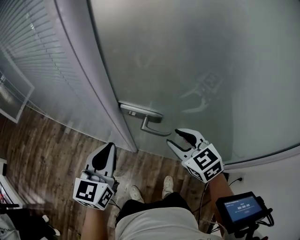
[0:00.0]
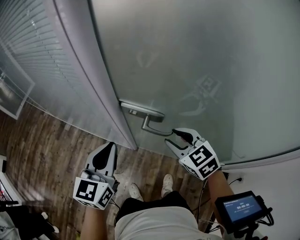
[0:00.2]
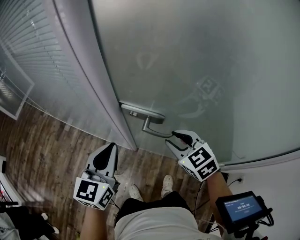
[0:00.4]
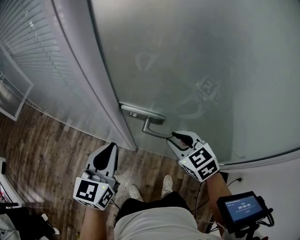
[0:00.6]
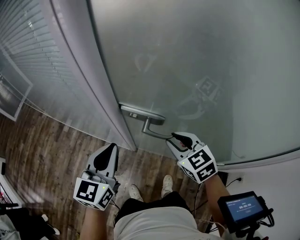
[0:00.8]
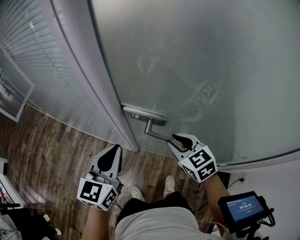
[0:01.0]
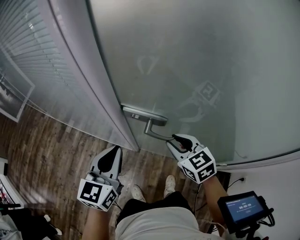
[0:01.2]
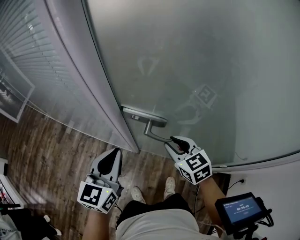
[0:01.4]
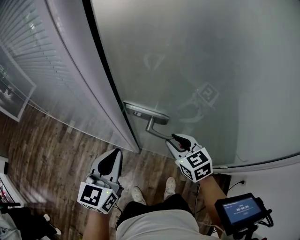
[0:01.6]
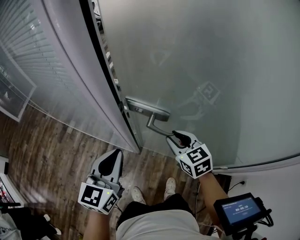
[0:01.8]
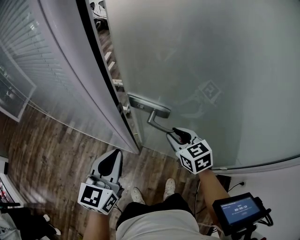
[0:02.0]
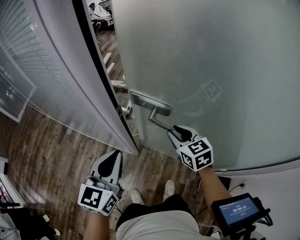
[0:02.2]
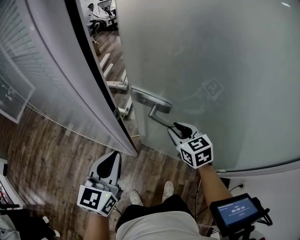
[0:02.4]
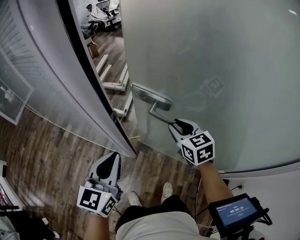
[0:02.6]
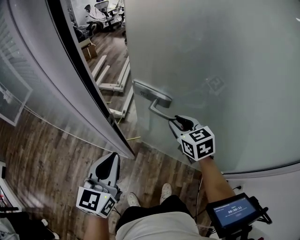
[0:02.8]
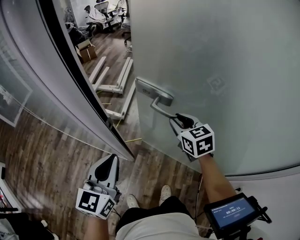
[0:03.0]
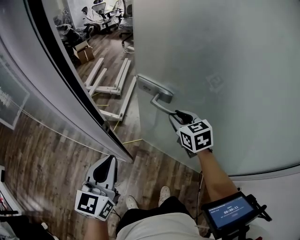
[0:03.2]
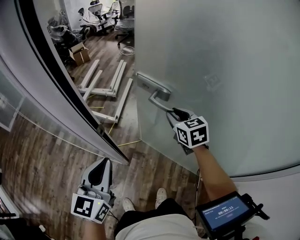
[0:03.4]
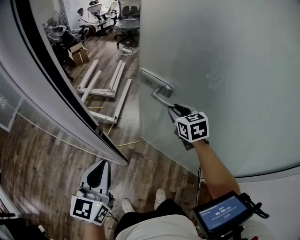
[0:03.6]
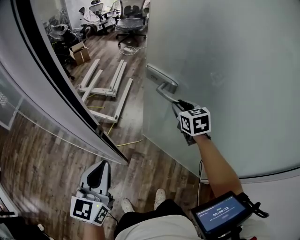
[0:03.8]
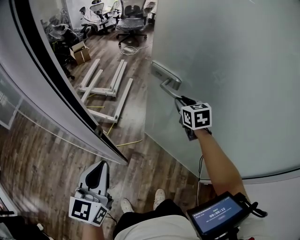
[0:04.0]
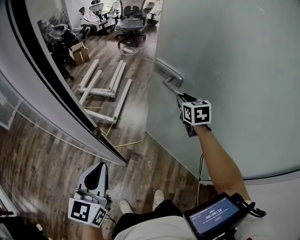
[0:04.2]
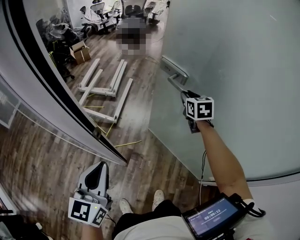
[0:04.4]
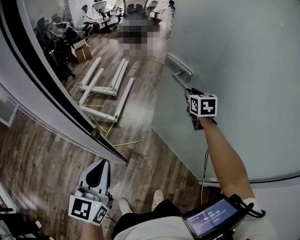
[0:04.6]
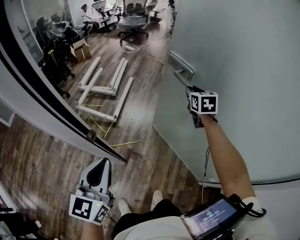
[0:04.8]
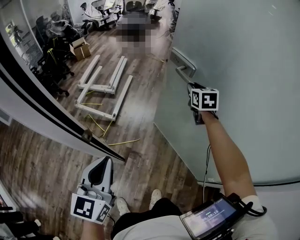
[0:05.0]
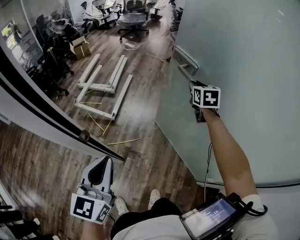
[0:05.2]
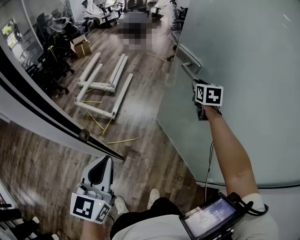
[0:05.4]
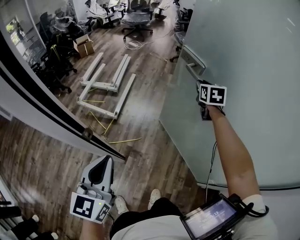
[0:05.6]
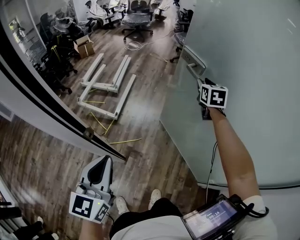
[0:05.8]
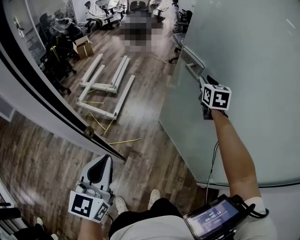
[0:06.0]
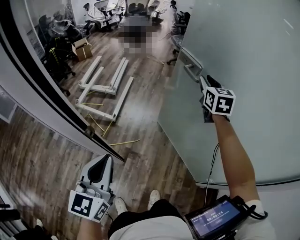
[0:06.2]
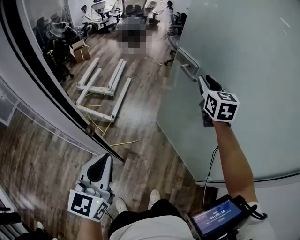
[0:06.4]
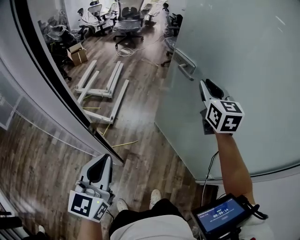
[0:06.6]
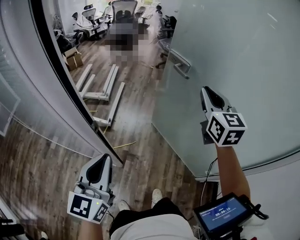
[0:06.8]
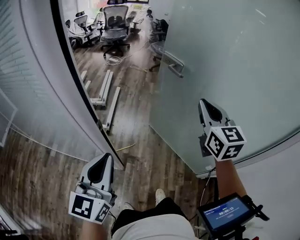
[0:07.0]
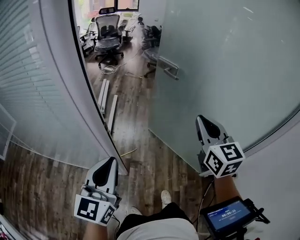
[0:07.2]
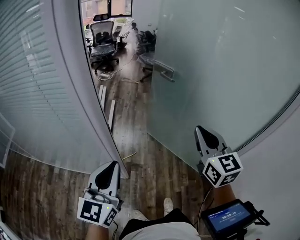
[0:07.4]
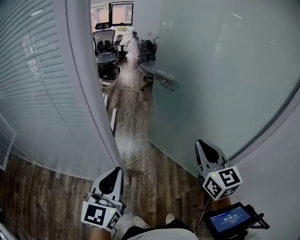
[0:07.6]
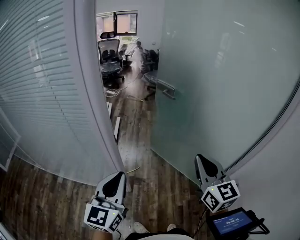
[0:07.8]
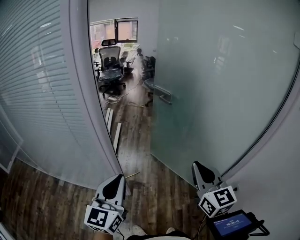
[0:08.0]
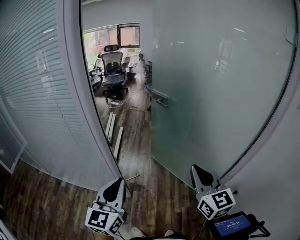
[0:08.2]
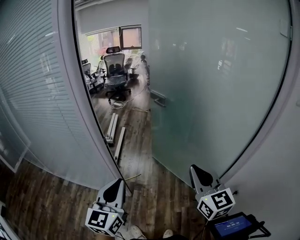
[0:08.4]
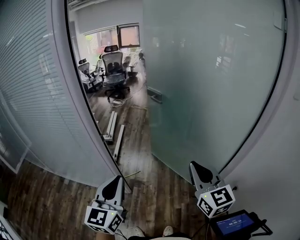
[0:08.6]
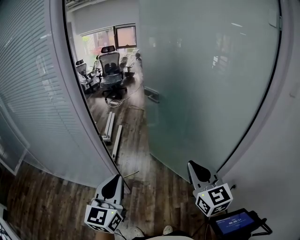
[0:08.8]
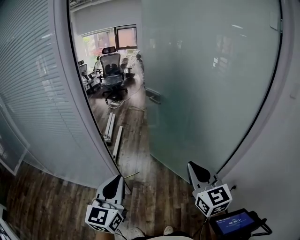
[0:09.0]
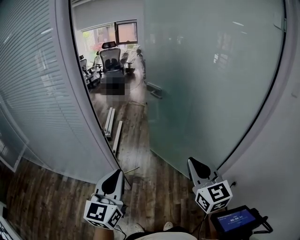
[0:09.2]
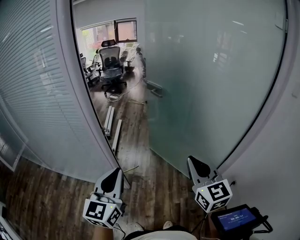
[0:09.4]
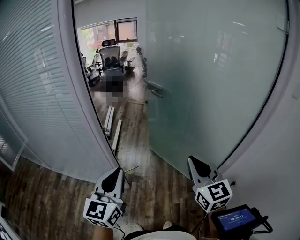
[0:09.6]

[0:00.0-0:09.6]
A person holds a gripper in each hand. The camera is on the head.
0:00.0 to 0:01.6: The right gripper shifts by some 5 cm.
0:01.6 to 0:03.2: The right gripper shifts approximately 15 cm forward and to the right.
0:03.2 to 0:04.8: The right gripper goes some 25 cm forward and to the right.
0:04.8 to 0:06.4: The right gripper goes about 15 cm upward and backward.
0:06.4 to 0:08.0: The left gripper goes approximately 15 cm backward, while the right gripper moves backward, approximately 50 cm, and closes its fingers.
0:08.0 to 0:09.6: The two grippers go some 10 cm to the right and backward.

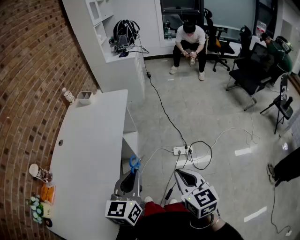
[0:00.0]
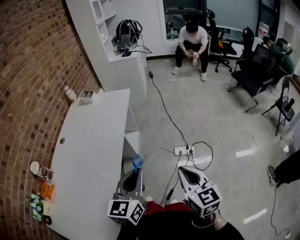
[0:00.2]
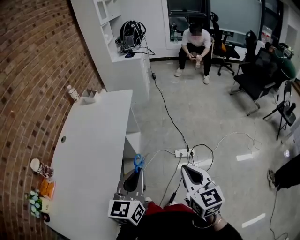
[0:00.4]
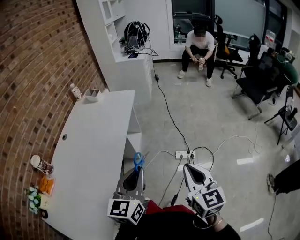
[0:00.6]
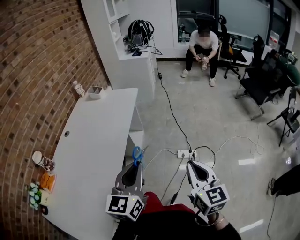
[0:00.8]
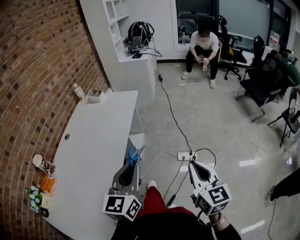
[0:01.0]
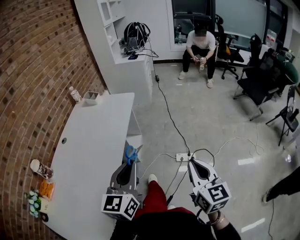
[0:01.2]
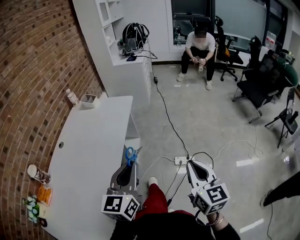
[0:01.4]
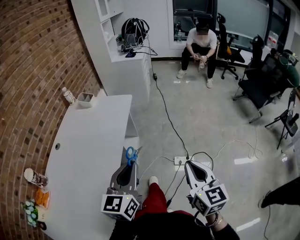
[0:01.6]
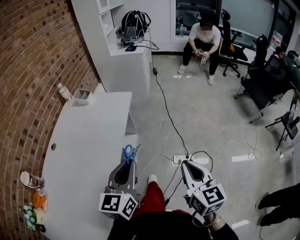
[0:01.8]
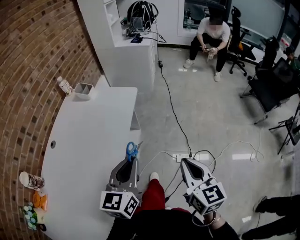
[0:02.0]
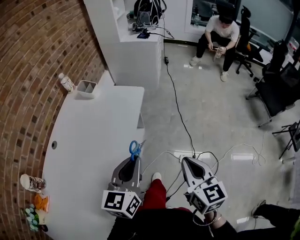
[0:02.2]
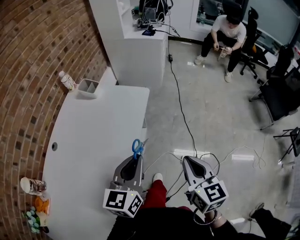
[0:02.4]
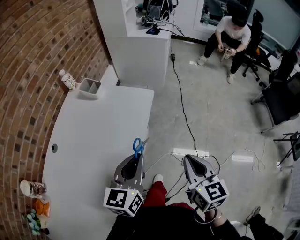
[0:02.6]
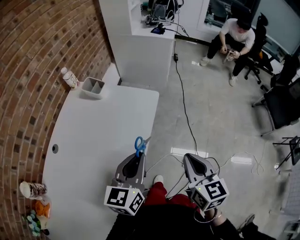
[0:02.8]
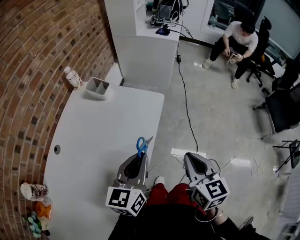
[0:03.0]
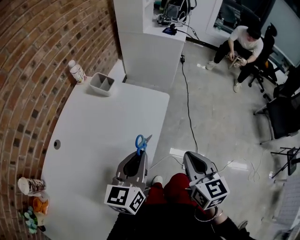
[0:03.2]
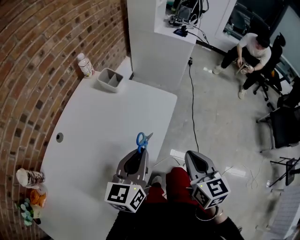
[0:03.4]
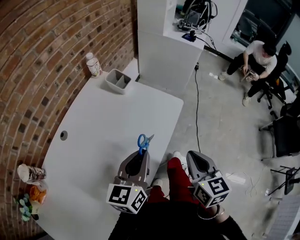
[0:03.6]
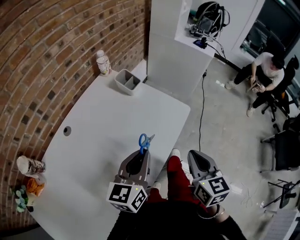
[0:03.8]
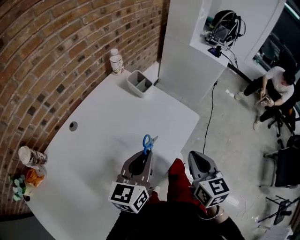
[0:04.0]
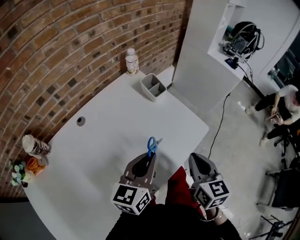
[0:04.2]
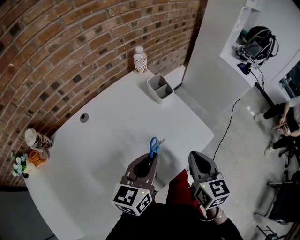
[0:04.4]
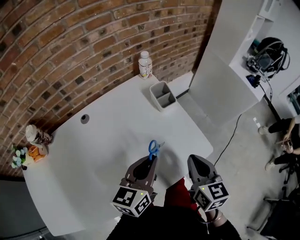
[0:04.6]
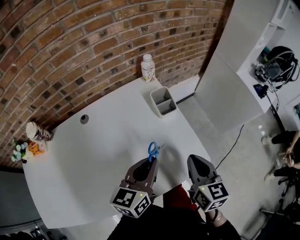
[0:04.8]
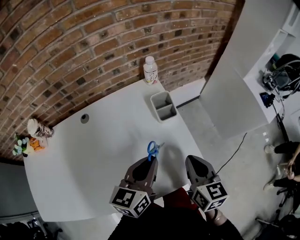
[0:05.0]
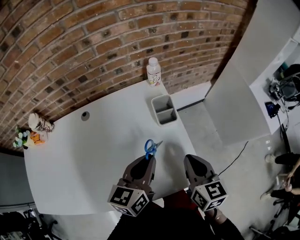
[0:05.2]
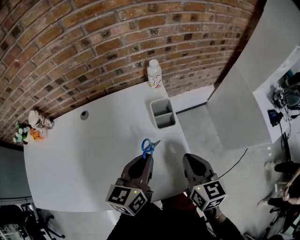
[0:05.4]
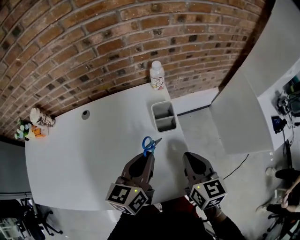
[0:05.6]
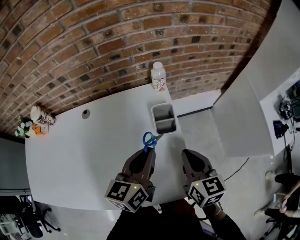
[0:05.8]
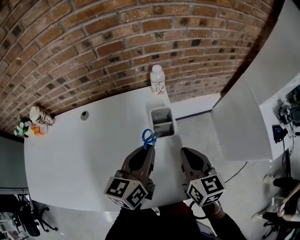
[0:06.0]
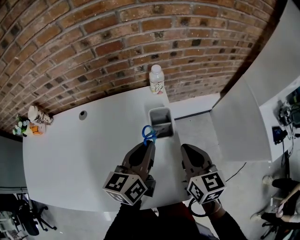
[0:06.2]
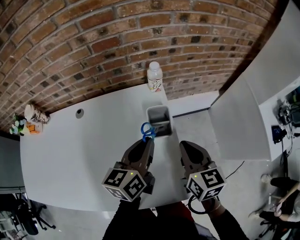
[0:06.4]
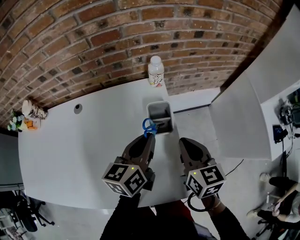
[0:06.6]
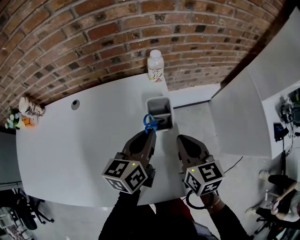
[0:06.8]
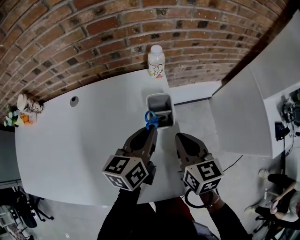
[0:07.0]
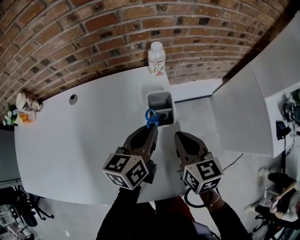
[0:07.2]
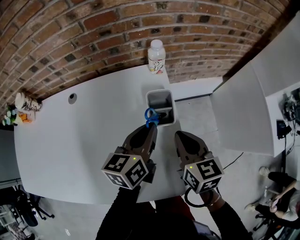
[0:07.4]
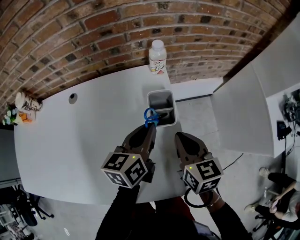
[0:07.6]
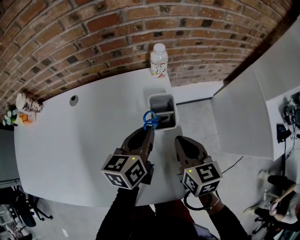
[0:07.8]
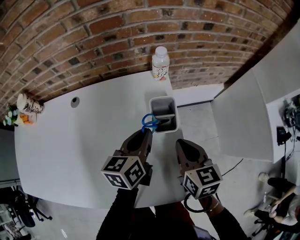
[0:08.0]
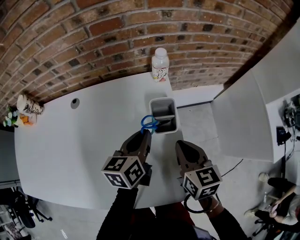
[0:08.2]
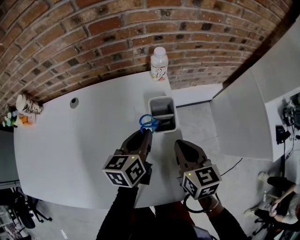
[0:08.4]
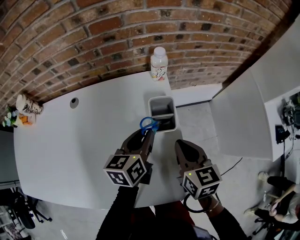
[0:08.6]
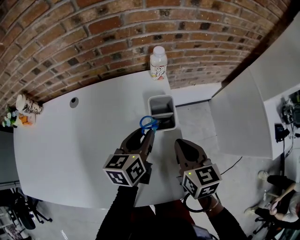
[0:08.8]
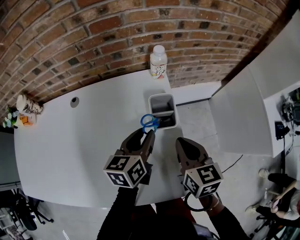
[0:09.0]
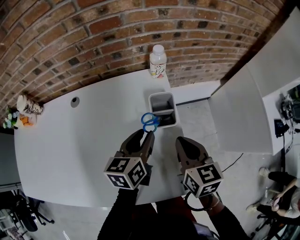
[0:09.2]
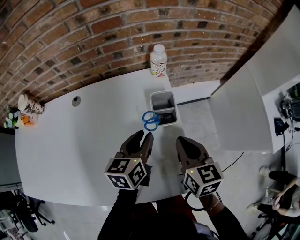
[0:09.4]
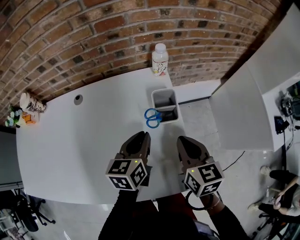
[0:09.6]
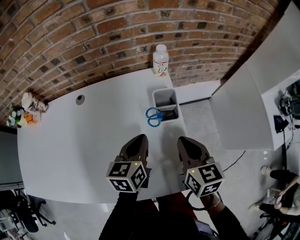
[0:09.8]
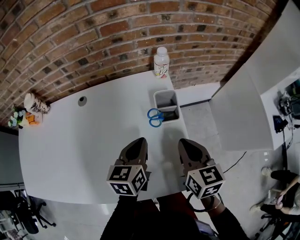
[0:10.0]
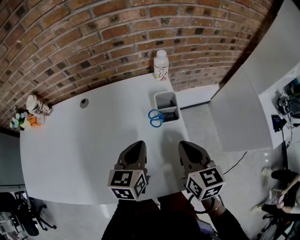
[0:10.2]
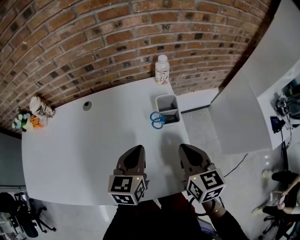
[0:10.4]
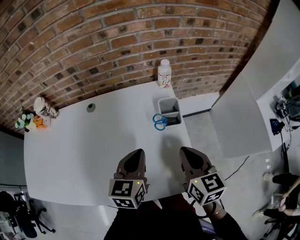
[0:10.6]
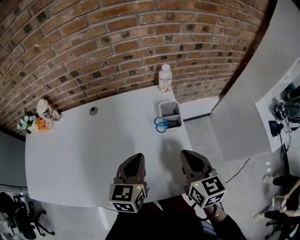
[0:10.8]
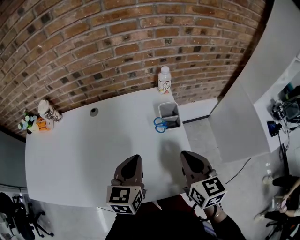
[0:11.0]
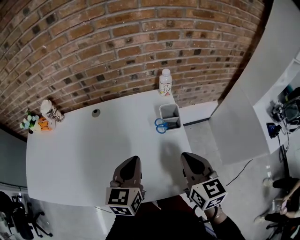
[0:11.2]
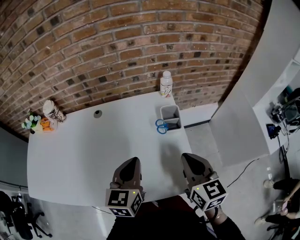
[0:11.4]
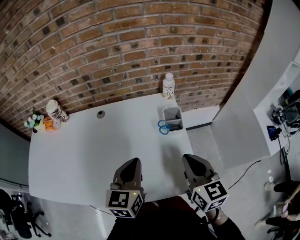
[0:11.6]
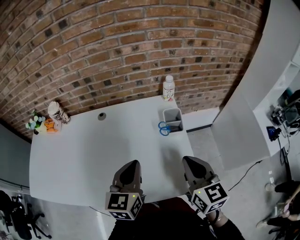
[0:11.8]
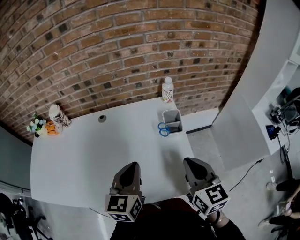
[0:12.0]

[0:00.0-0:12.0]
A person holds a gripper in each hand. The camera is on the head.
0:00.0 to 0:01.6: The two grippers go about 10 cm forward.
0:01.6 to 0:03.0: The left gripper shifts approximately 25 cm forward; the right gripper shifts approximately 30 cm forward and to the left.
0:03.0 to 0:04.4: The right gripper changes place by some 20 cm, and rotates approximately 30 degrees. Meanwhile the left gripper moves roughly 10 cm, and changes its angle by approximately 30 degrees.
0:04.4 to 0:06.0: The right gripper ends up roughly 25 cm from where it was, and changes its angle by roughly 30 degrees. Meanwhile the left gripper shifts by some 20 cm, and rotates about 30 degrees.
0:06.0 to 0:07.6: The two grippers go some 5 cm downward.
0:07.6 to 0:09.0: The left gripper opens up.
0:09.0 to 0:10.4: The left gripper moves backward and to the left, approximately 10 cm, and closes, while the right gripper heads backward, covering roughly 5 cm.
0:10.4 to 0:12.0: The left gripper is displaced upward, backward and to the left by some 10 cm, while the right gripper is displaced upward and backward by roughly 10 cm.

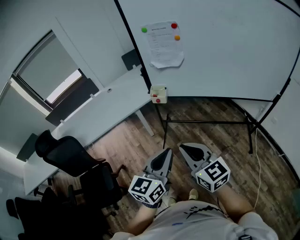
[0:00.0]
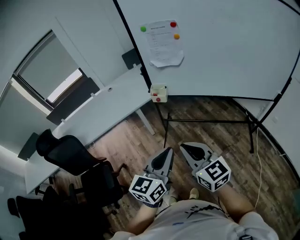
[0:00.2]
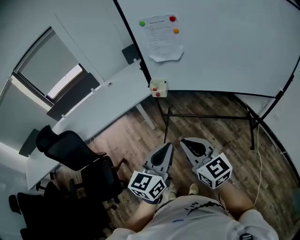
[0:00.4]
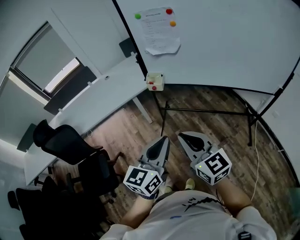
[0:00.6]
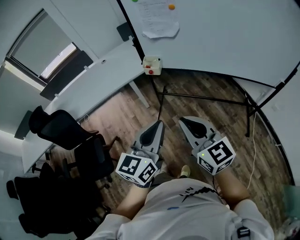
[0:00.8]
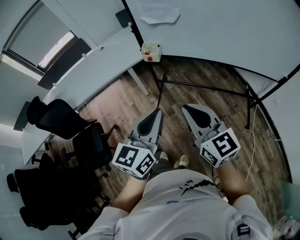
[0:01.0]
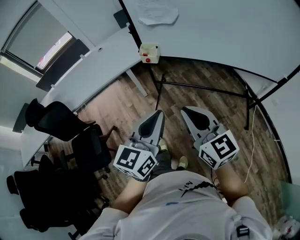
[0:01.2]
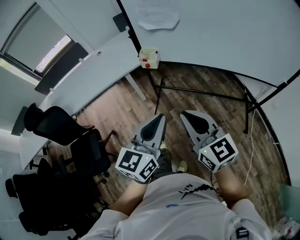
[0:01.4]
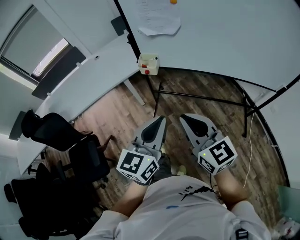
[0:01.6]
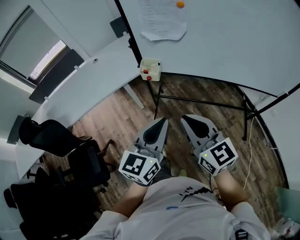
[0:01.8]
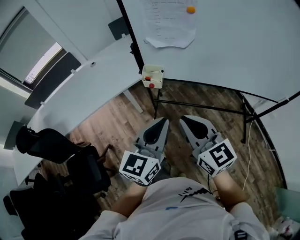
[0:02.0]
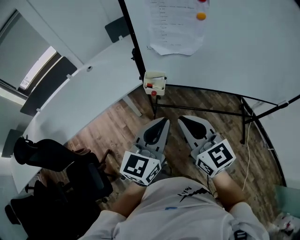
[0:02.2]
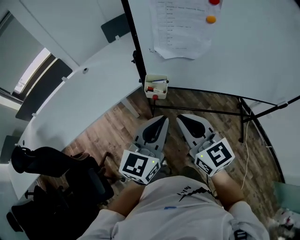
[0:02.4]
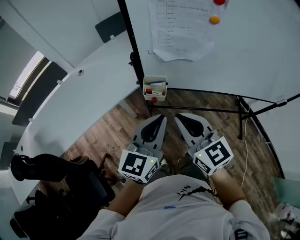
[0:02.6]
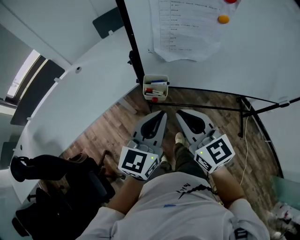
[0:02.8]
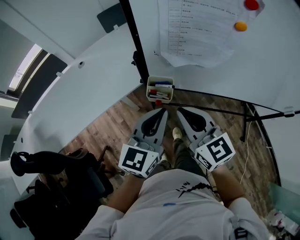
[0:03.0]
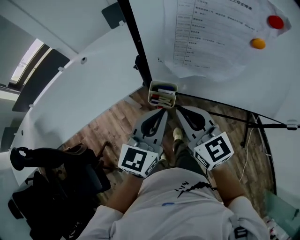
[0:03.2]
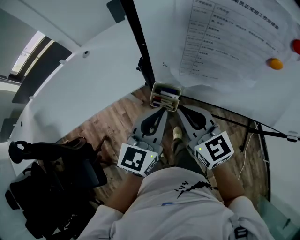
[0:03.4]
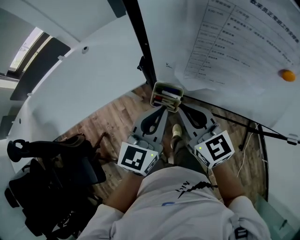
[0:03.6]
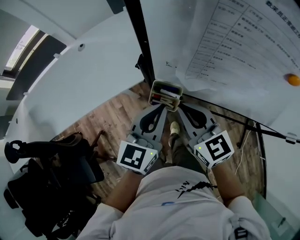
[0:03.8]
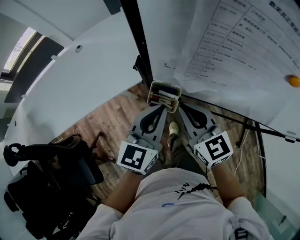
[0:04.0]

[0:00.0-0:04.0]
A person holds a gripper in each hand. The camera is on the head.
0:00.0 to 0:01.4: Both grippers travel together to the right, roughly 5 cm.
0:01.4 to 0:02.6: The left gripper is displaced forward by approximately 30 cm. The right gripper goes some 30 cm forward and to the left.
0:02.6 to 0:04.0: Both grippers move forward and downward, approximately 20 cm.
